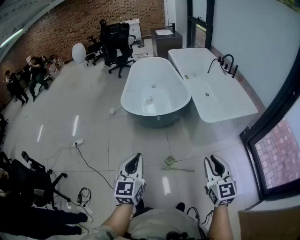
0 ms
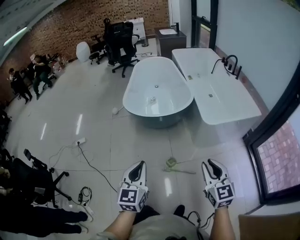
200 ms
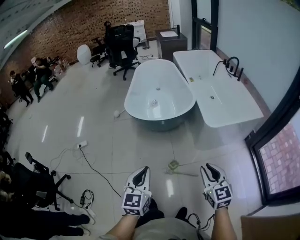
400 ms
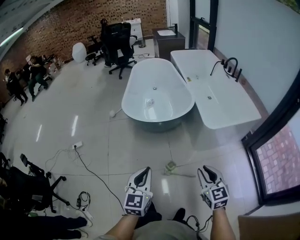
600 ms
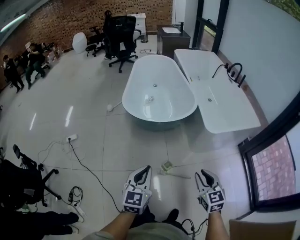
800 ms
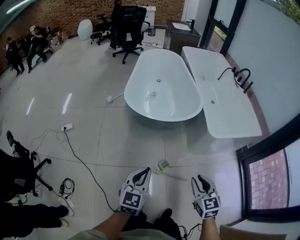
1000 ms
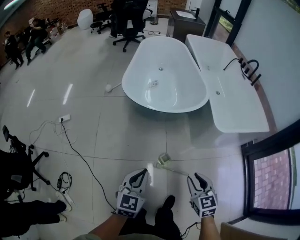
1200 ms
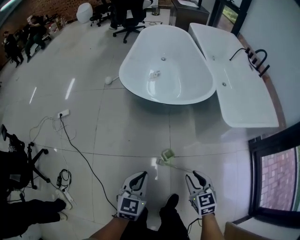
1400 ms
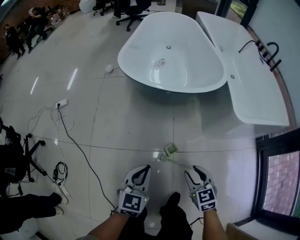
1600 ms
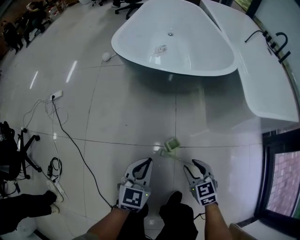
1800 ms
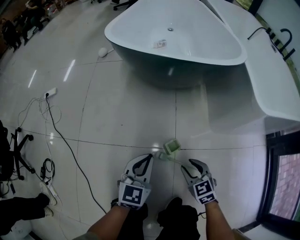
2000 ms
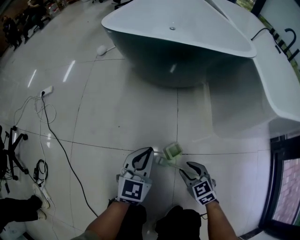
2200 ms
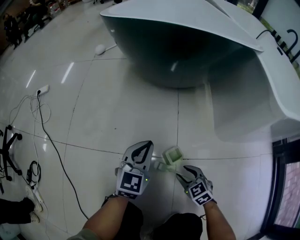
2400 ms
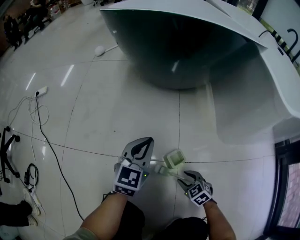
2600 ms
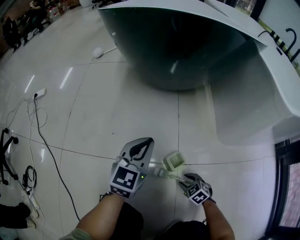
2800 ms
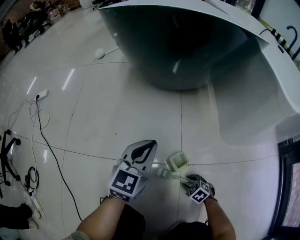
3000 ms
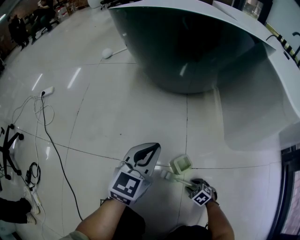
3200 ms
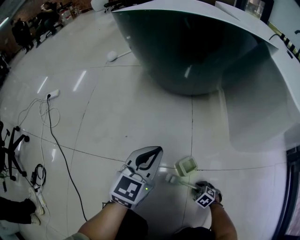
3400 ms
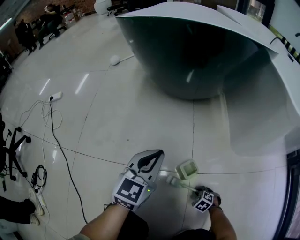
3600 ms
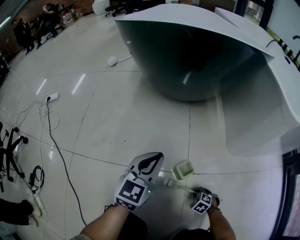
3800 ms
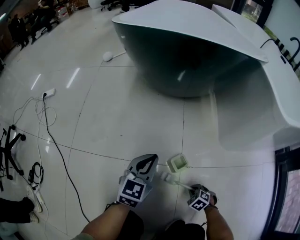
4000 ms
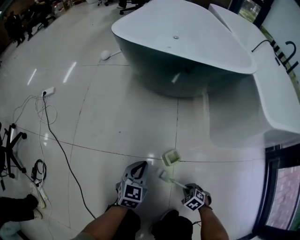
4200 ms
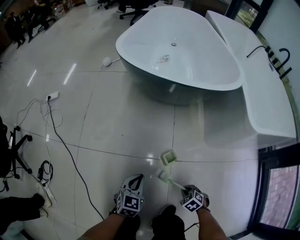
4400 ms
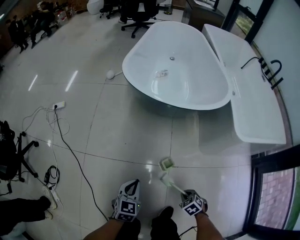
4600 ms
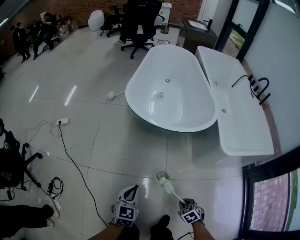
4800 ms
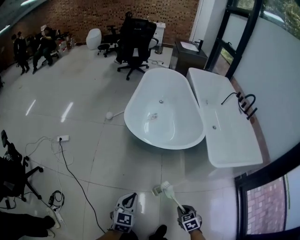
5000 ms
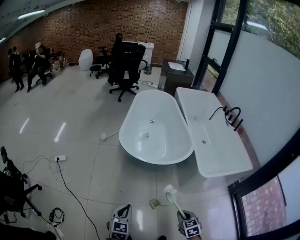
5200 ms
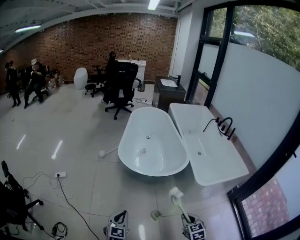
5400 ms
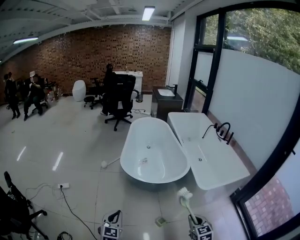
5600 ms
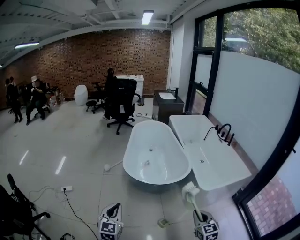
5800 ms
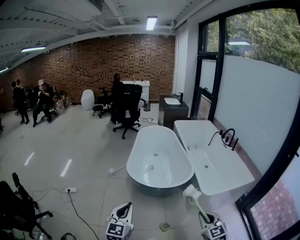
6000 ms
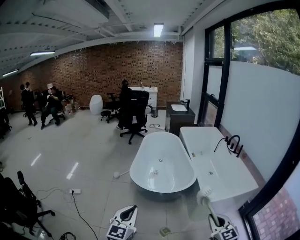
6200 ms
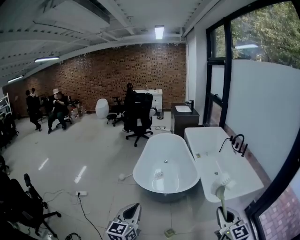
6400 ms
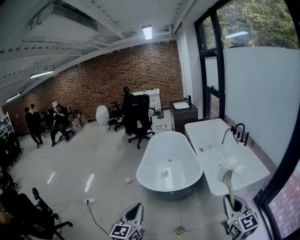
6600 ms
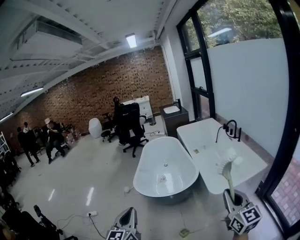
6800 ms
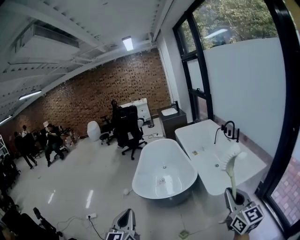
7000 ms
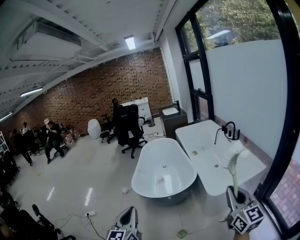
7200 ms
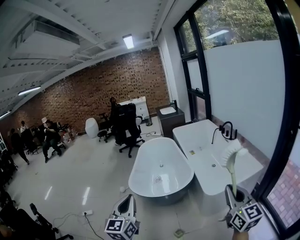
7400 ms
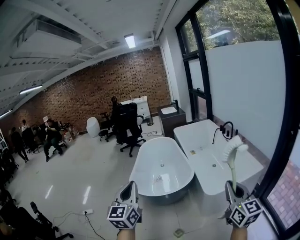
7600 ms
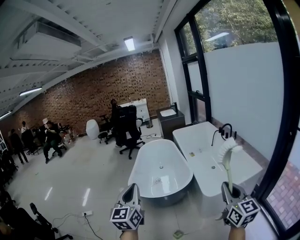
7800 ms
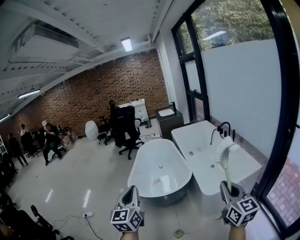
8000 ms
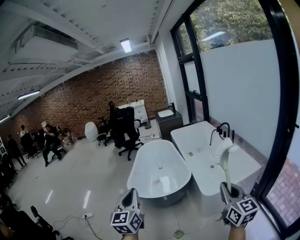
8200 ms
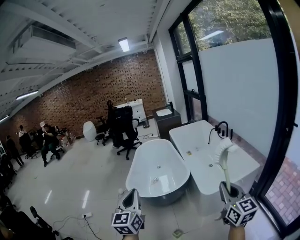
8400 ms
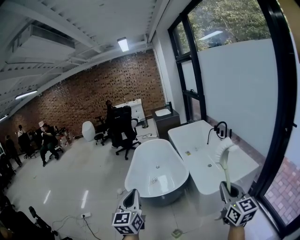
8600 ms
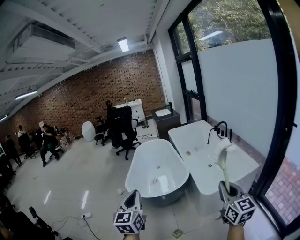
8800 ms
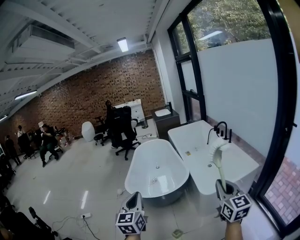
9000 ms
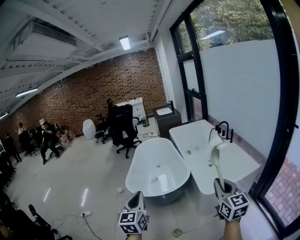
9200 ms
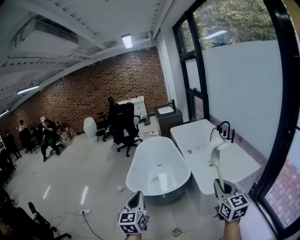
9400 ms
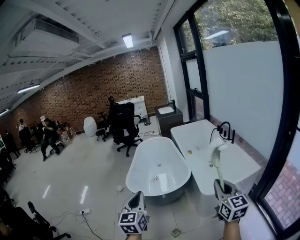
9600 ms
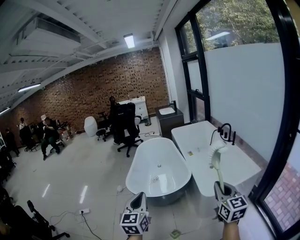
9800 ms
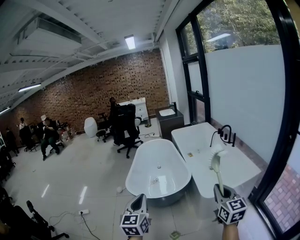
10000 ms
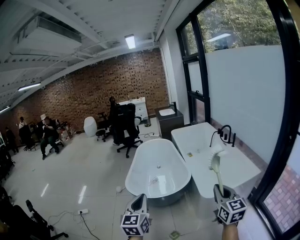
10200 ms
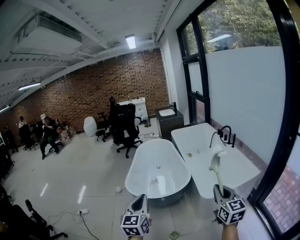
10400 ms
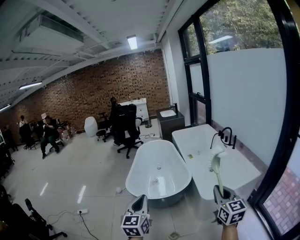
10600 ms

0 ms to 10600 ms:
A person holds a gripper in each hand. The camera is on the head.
0 ms to 1600 ms: Both grippers travel together downward and forward, roughly 60 cm. The right gripper changes its angle by some 30 degrees.
1600 ms to 3000 ms: The left gripper goes roughly 50 cm downward. The right gripper heads downward, covering approximately 70 cm, and points its fingers some 30 degrees further downward.
3000 ms to 4600 ms: The right gripper goes about 50 cm upward, and closes its fingers. Meanwhile the left gripper shifts roughly 35 cm upward, and changes its angle by some 30 degrees.
4600 ms to 6000 ms: The two grippers go about 70 cm upward. The right gripper points its fingers some 50 degrees further upward, while the left gripper tips its fingers upward by some 30 degrees.
6000 ms to 7600 ms: The grippers both shift to the right and upward by approximately 30 cm. The right gripper rotates about 40 degrees.
7600 ms to 9000 ms: The left gripper is displaced downward and to the right by approximately 10 cm.
9000 ms to 10600 ms: The right gripper goes approximately 5 cm to the left.

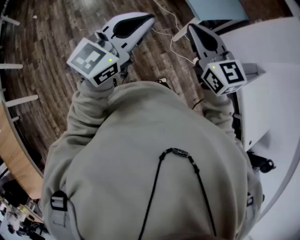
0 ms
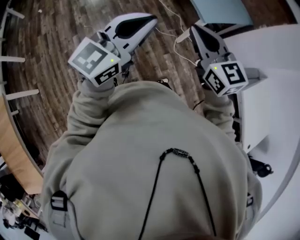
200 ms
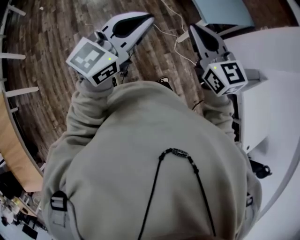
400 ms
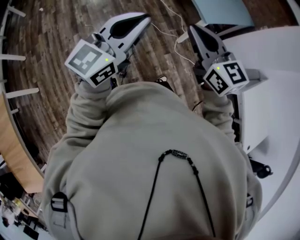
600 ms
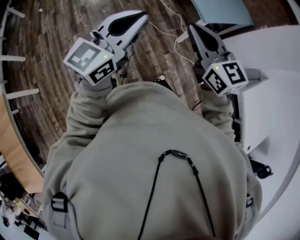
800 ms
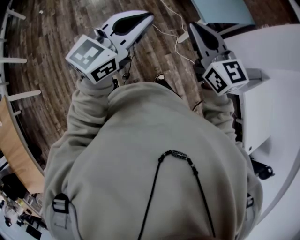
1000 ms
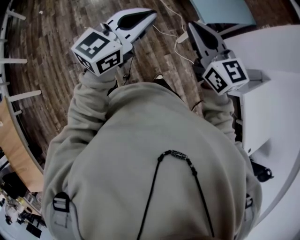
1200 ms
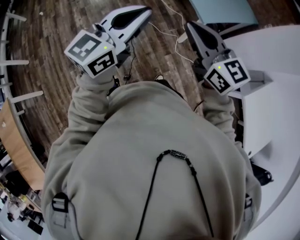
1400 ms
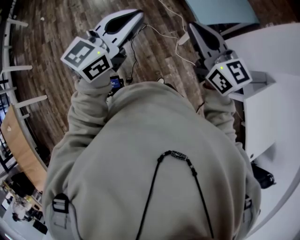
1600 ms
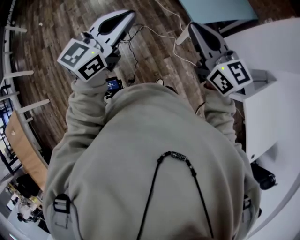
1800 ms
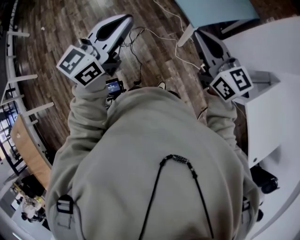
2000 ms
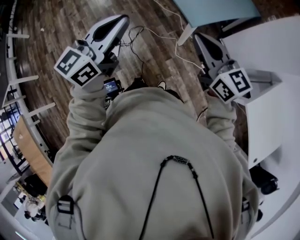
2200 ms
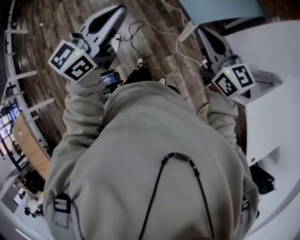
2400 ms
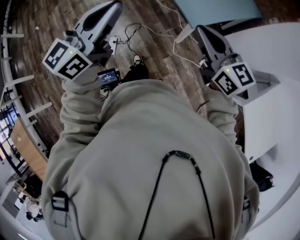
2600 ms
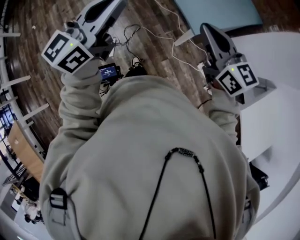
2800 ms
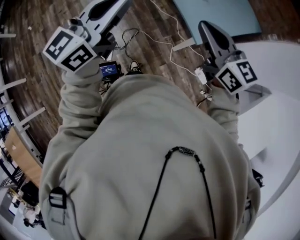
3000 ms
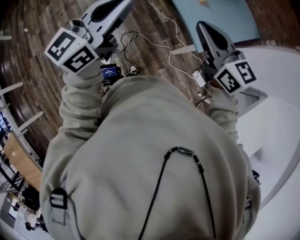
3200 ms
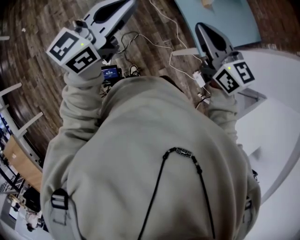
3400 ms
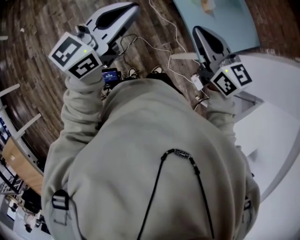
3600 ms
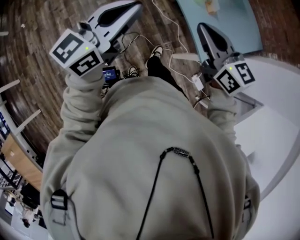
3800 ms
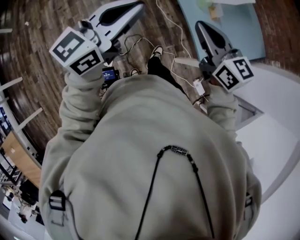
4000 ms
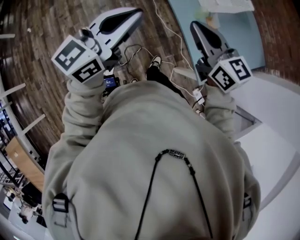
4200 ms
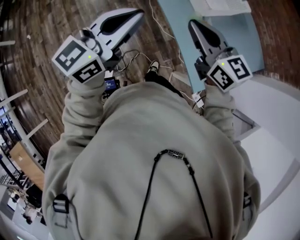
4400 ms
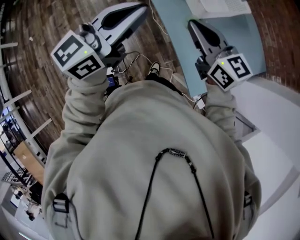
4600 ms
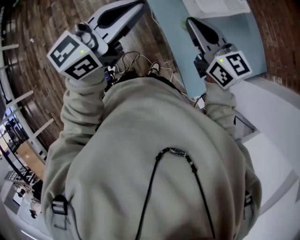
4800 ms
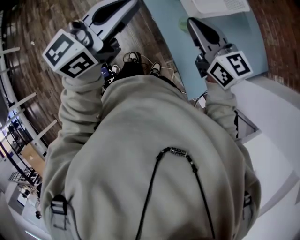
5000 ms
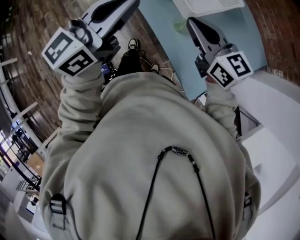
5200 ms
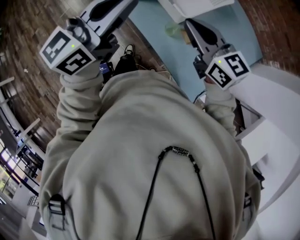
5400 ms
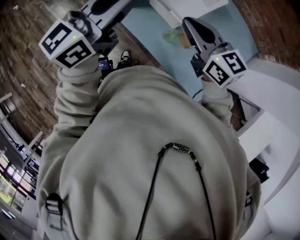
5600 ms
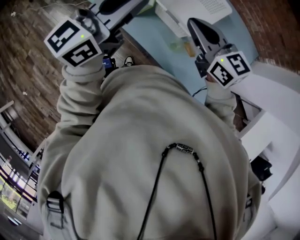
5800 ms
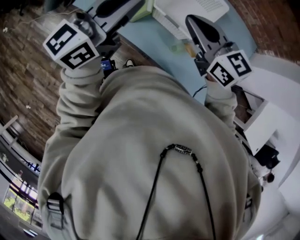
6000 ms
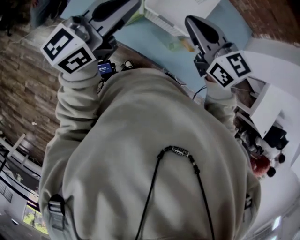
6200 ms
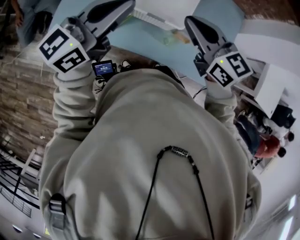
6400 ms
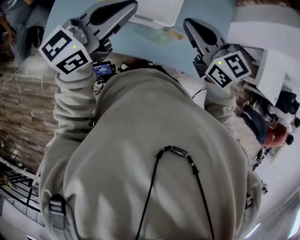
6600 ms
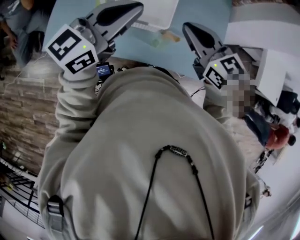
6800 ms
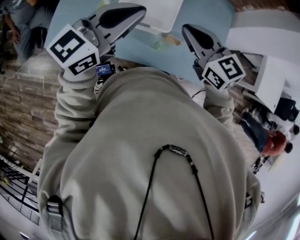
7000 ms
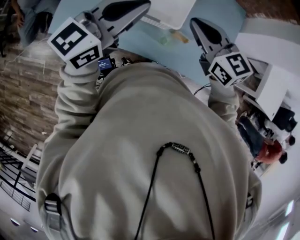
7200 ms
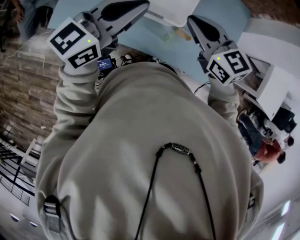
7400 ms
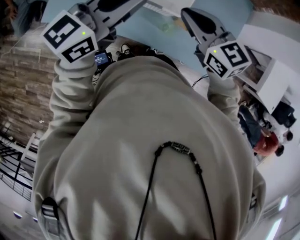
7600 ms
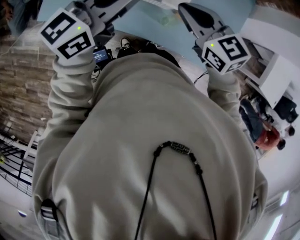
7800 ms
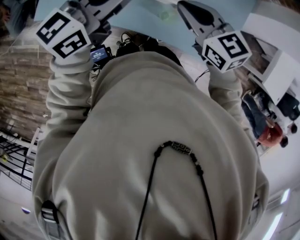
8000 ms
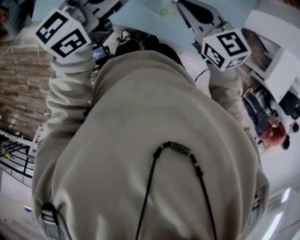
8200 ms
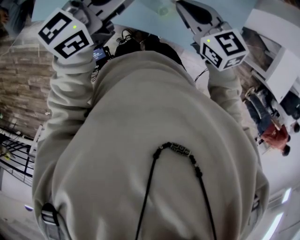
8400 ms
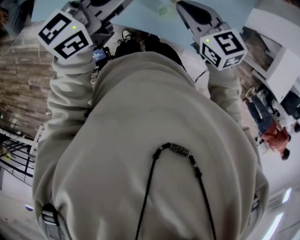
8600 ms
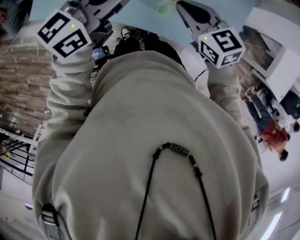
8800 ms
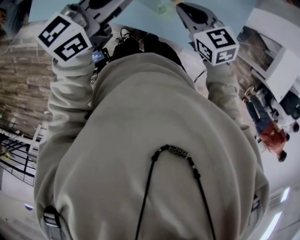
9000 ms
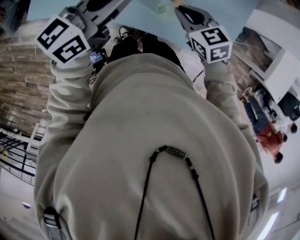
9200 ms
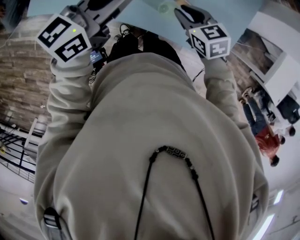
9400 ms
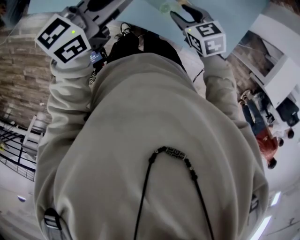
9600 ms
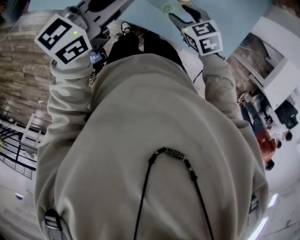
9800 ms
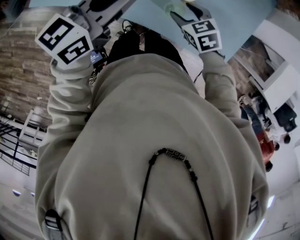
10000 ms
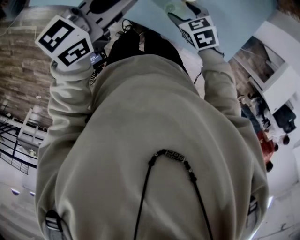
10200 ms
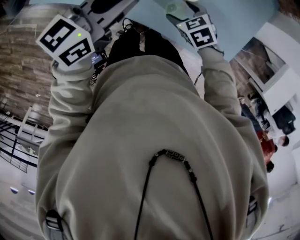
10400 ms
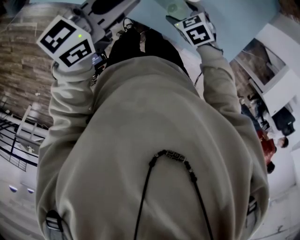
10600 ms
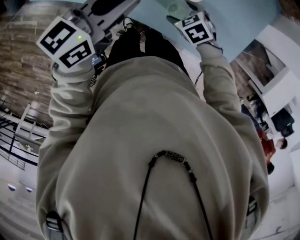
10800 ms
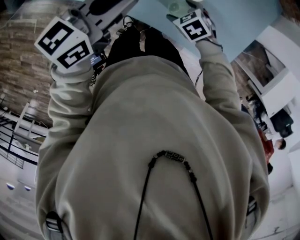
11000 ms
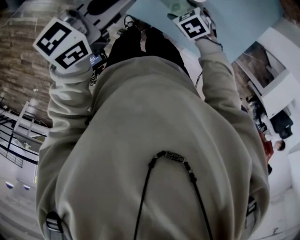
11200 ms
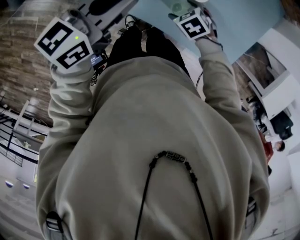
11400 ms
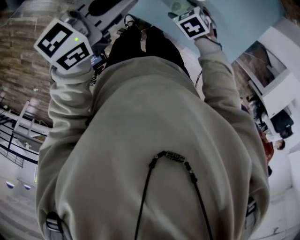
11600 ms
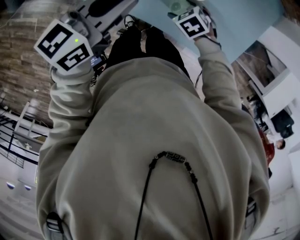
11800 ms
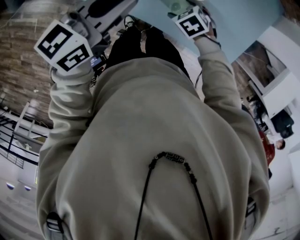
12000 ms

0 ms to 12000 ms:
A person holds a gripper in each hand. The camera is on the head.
0 ms to 1600 ms: The grippers both shift forward and to the right by about 15 cm.
1600 ms to 3000 ms: The grippers both shift forward by approximately 25 cm.
3000 ms to 4400 ms: Both grippers travel together forward, about 30 cm.
4400 ms to 6000 ms: The right gripper shifts by some 30 cm, and rotates some 20 degrees; the left gripper ends up roughly 35 cm from where it was, and swivels roughly 30 degrees.
6000 ms to 7600 ms: The left gripper ends up about 10 cm from where it was, and rotates some 20 degrees; the right gripper goes approximately 10 cm downward.
7600 ms to 9000 ms: The left gripper moves downward, some 5 cm, while the right gripper travels downward by some 10 cm.
9000 ms to 10400 ms: The left gripper shifts some 5 cm downward, while the right gripper moves downward, some 15 cm, changes its angle by roughly 20 degrees, and opens up.
10400 ms to 12000 ms: The right gripper travels downward by about 5 cm.

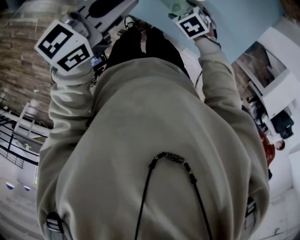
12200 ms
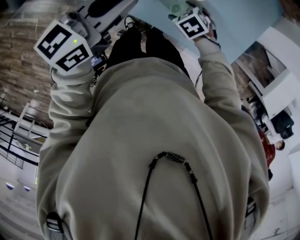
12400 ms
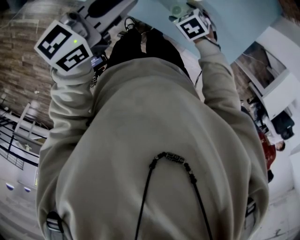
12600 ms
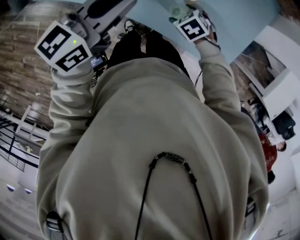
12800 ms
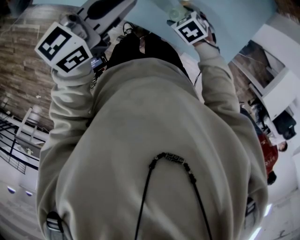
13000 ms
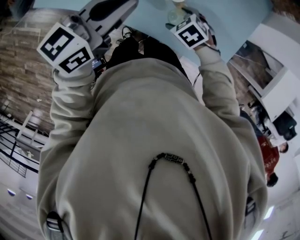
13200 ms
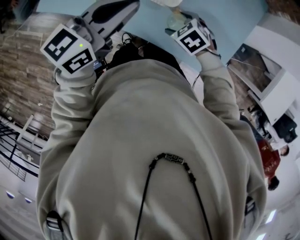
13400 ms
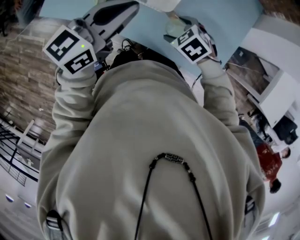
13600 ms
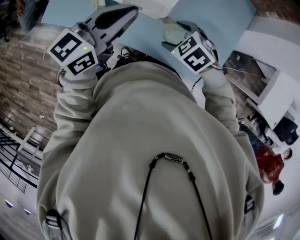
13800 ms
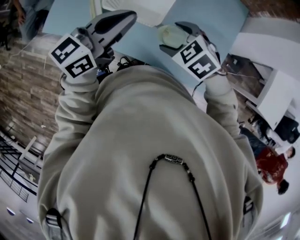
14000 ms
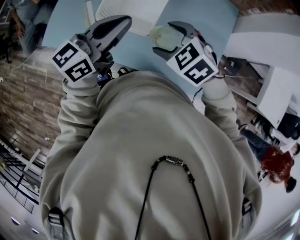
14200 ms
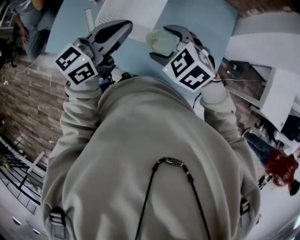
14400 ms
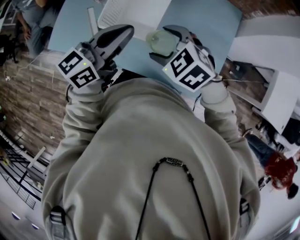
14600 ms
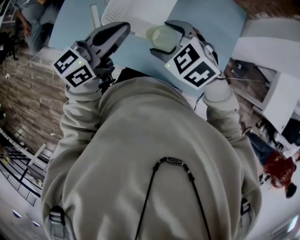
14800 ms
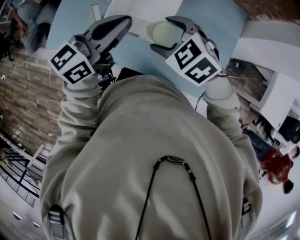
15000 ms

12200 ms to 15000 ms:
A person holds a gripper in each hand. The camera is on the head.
12200 ms to 13600 ms: The right gripper moves upward, about 10 cm. The left gripper shifts by about 10 cm.
13600 ms to 15000 ms: The right gripper goes some 20 cm upward and forward, while the left gripper shifts roughly 10 cm forward and upward.
